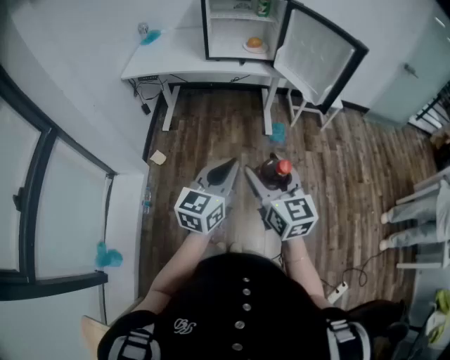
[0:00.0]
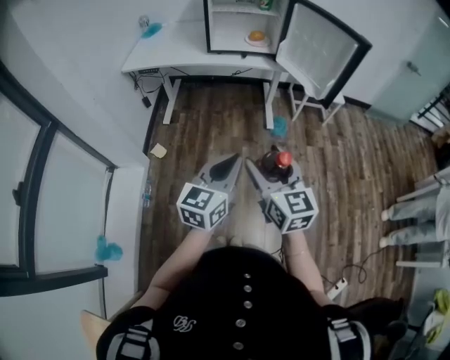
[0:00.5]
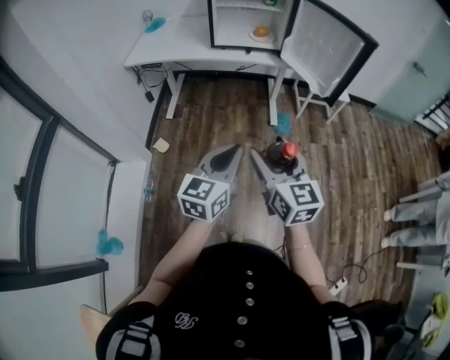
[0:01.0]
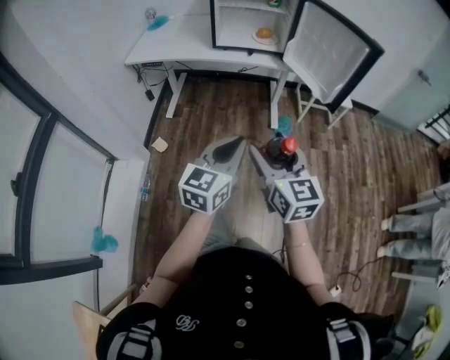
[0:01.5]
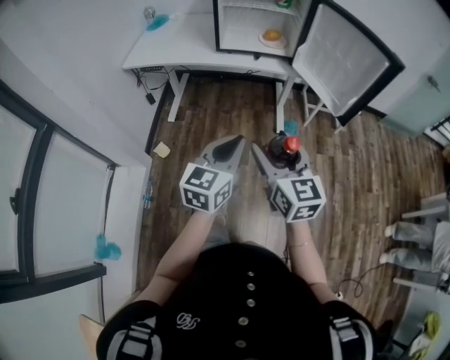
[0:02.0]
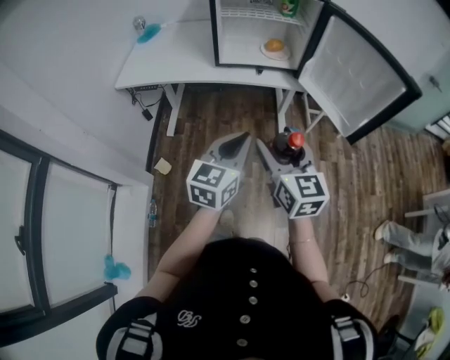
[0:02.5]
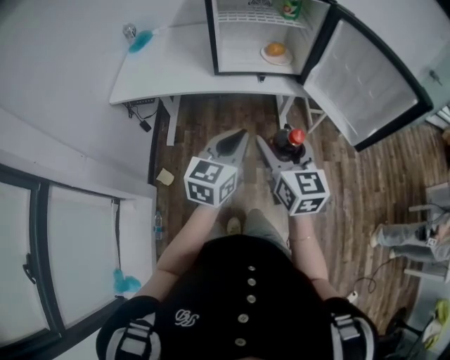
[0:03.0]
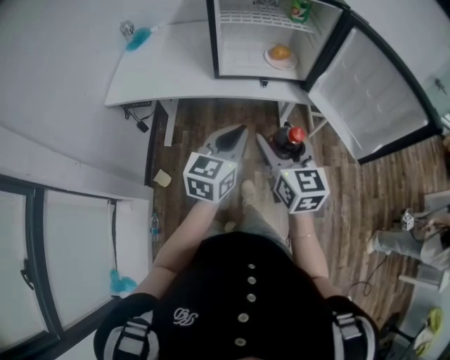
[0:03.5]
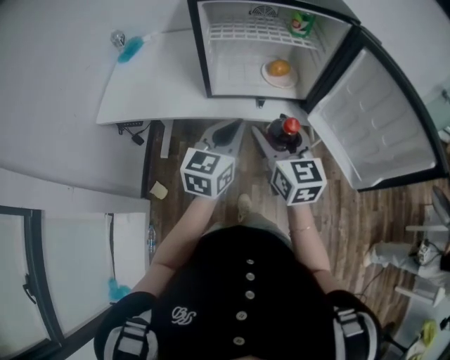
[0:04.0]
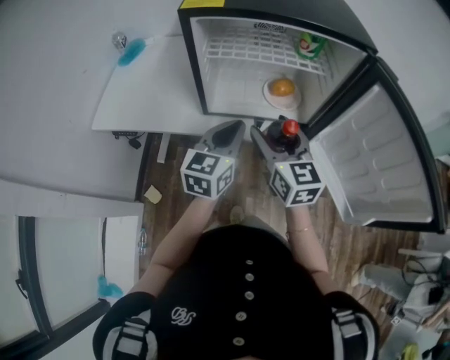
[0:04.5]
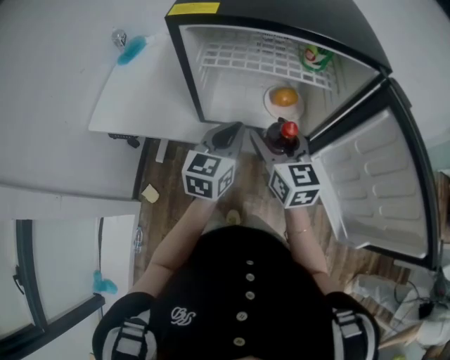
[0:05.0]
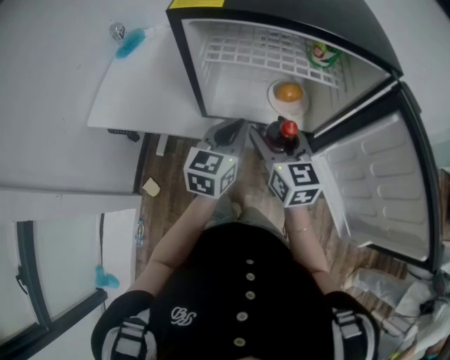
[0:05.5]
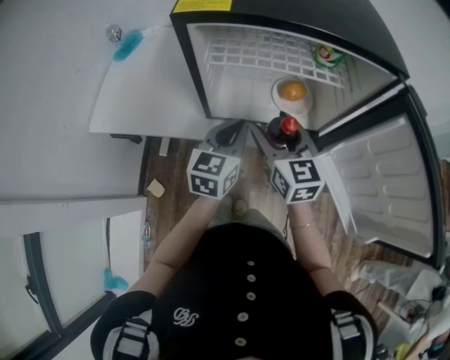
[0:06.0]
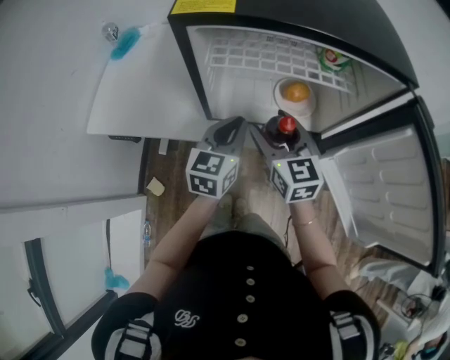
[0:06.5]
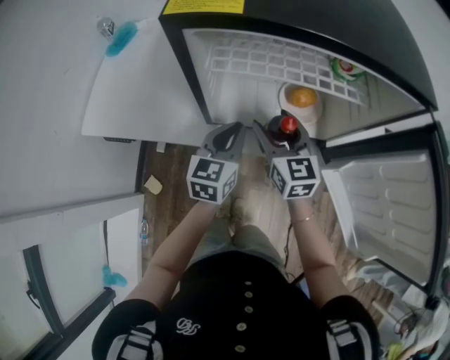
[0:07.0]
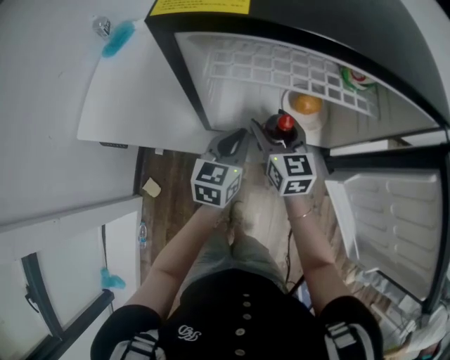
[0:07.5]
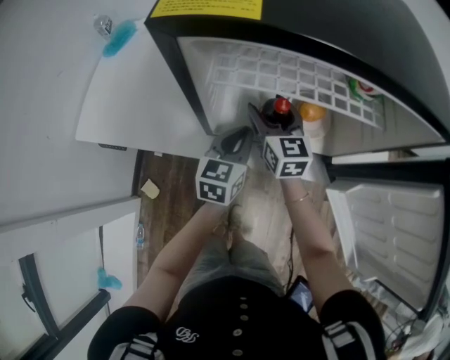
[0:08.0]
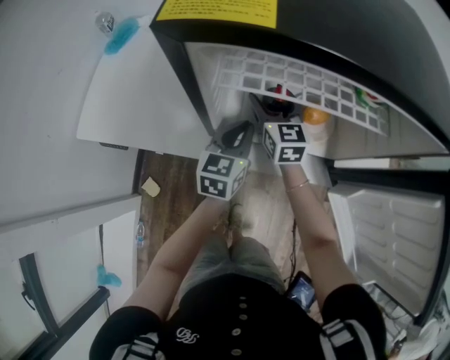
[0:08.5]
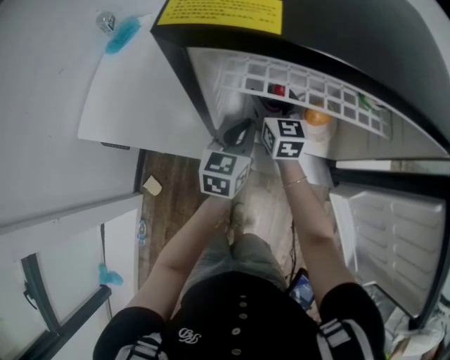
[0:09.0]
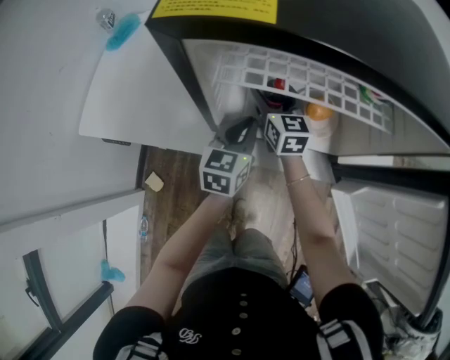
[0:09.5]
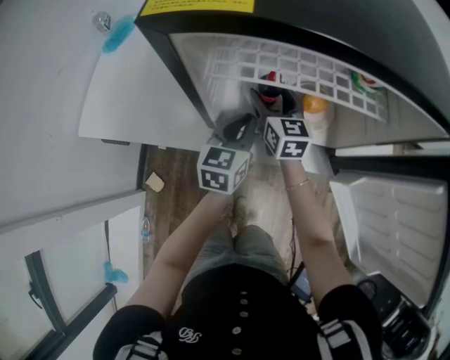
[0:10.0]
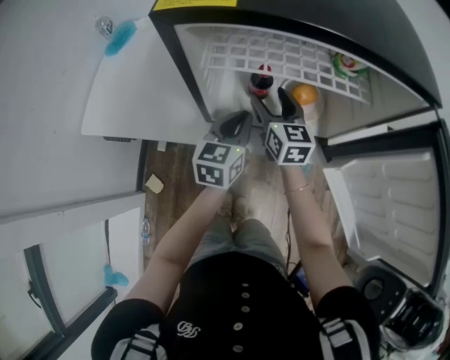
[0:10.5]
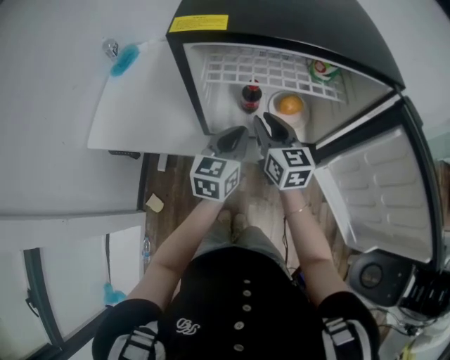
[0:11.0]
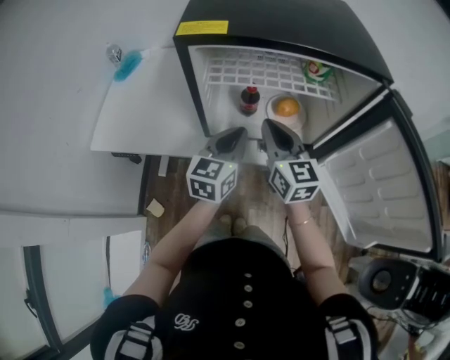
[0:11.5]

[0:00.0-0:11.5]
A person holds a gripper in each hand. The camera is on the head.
0:00.0 to 0:02.0: The two grippers go about 15 cm forward.
0:02.0 to 0:04.0: The two grippers go about 40 cm forward.
0:04.0 to 0:06.0: The two grippers go about 15 cm forward.
0:06.0 to 0:07.5: The right gripper heads forward and downward, covering approximately 15 cm. Meanwhile the left gripper moves downward and forward, some 10 cm.
0:07.5 to 0:09.5: The right gripper is displaced forward by approximately 10 cm.
0:09.5 to 0:11.5: The right gripper travels backward and upward by some 25 cm, and closes. Meanwhile the left gripper goes roughly 15 cm upward and backward.

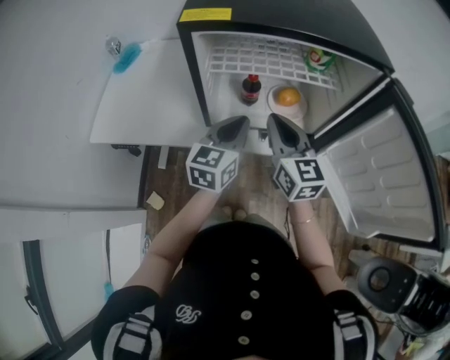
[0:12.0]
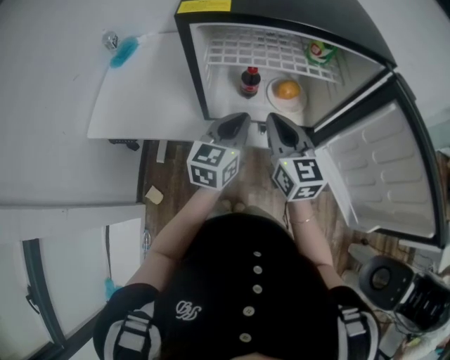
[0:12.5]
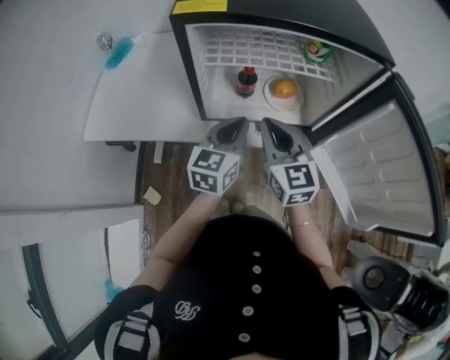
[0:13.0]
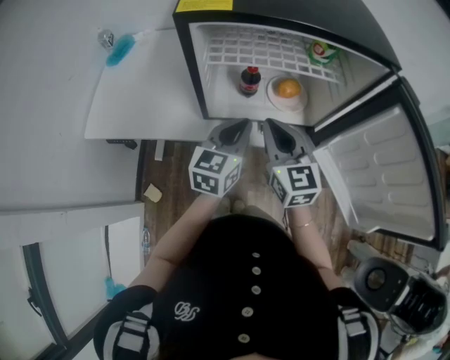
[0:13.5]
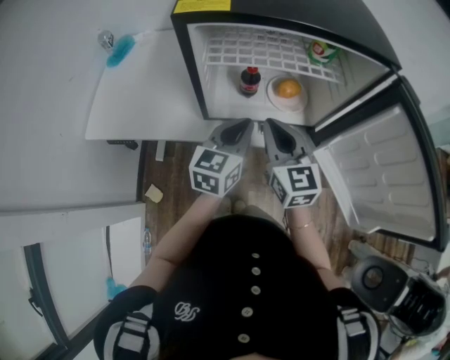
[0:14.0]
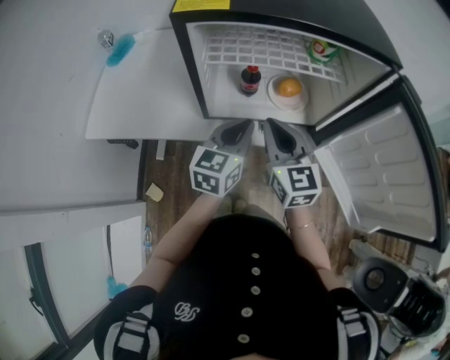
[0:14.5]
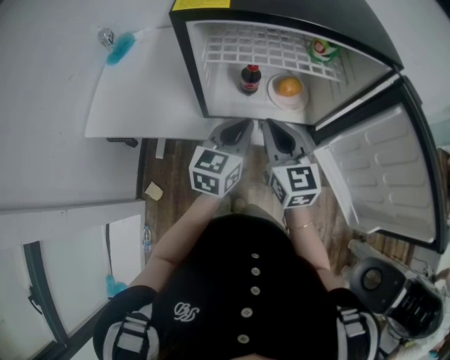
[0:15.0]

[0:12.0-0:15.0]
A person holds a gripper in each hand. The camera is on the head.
0:12.0 to 0:13.5: The grippers stay close to where they were, moving slightly.
0:13.5 to 0:15.0: Both grippers stay about where they are.

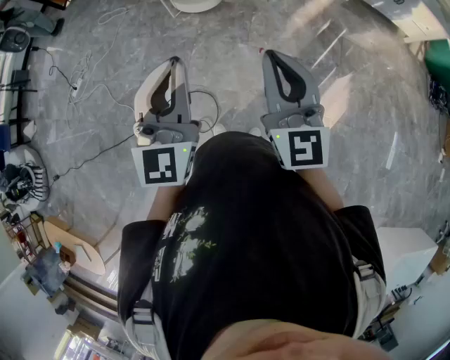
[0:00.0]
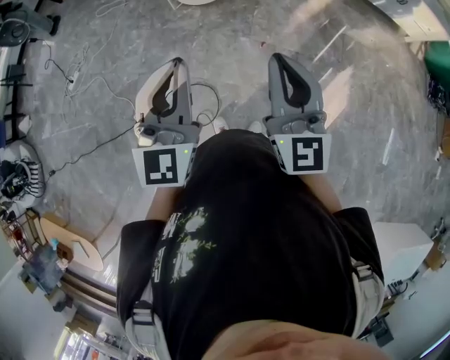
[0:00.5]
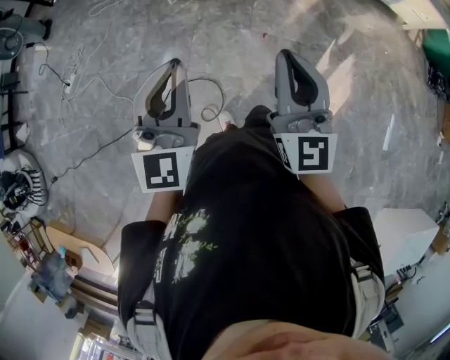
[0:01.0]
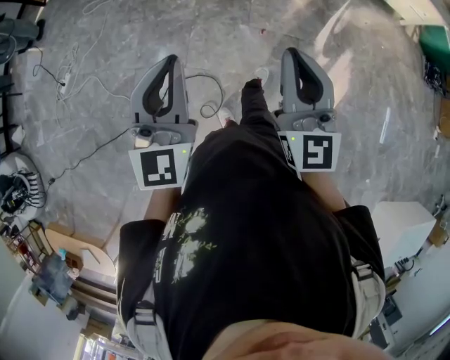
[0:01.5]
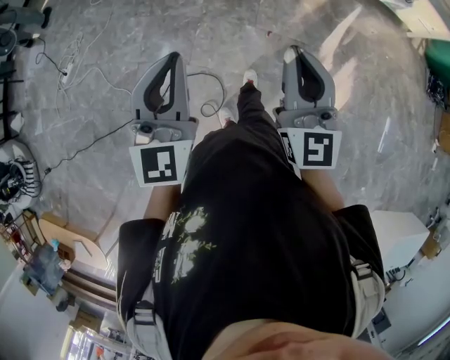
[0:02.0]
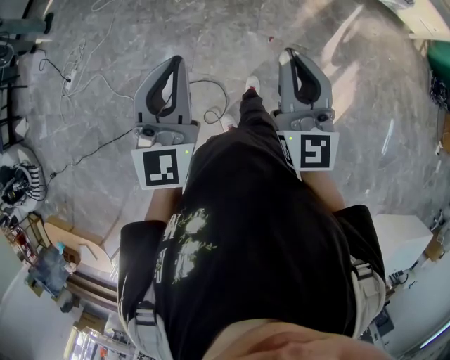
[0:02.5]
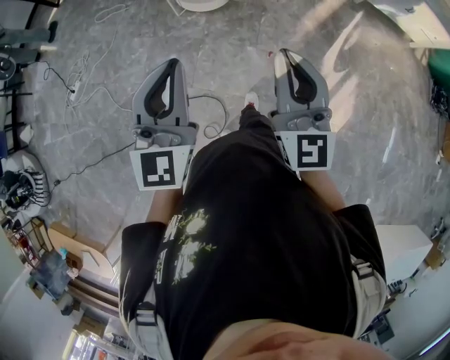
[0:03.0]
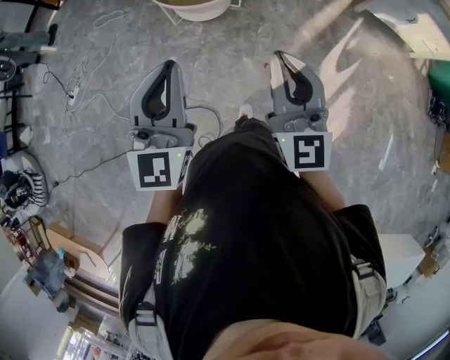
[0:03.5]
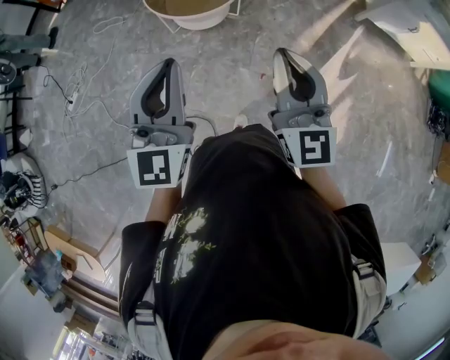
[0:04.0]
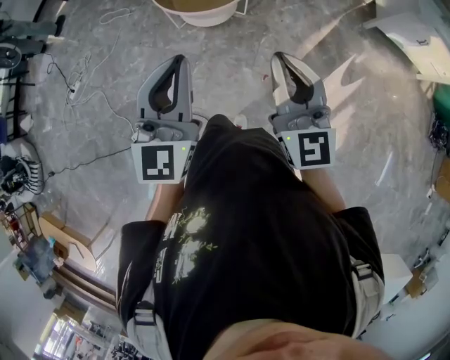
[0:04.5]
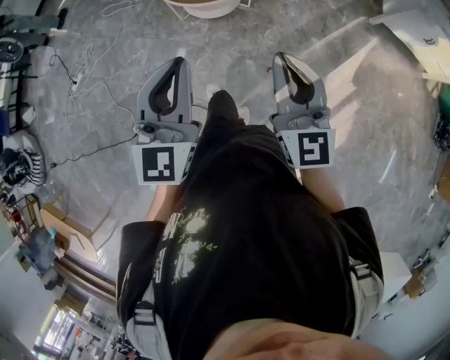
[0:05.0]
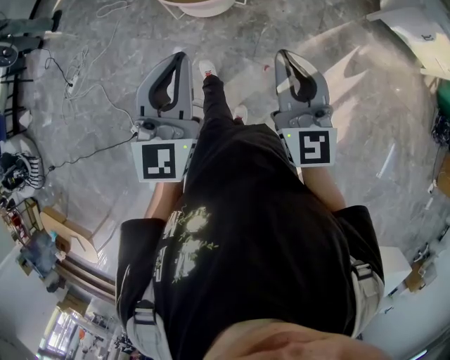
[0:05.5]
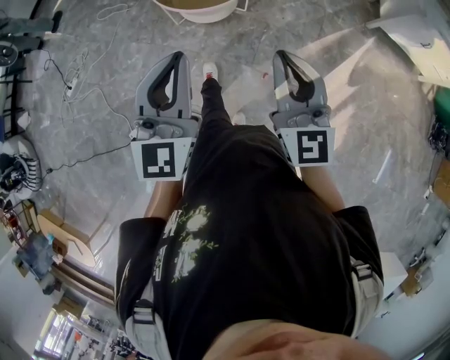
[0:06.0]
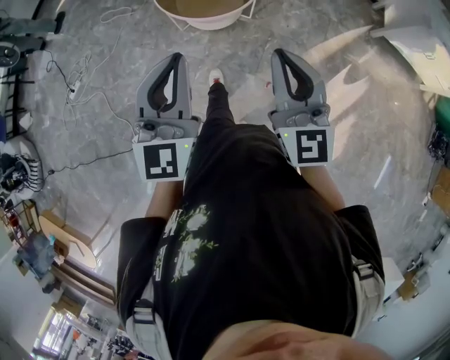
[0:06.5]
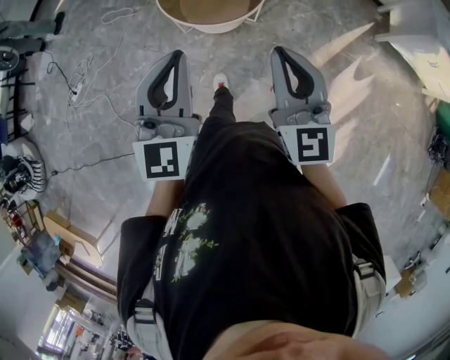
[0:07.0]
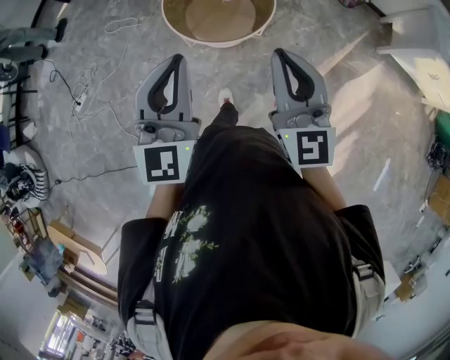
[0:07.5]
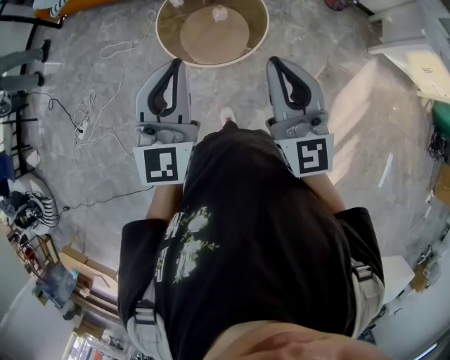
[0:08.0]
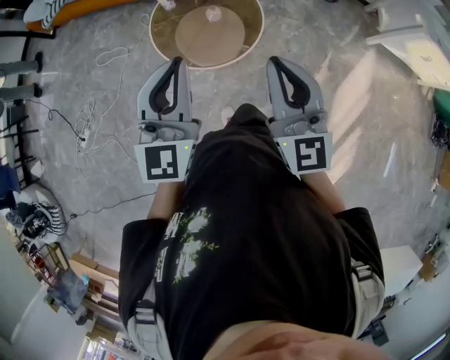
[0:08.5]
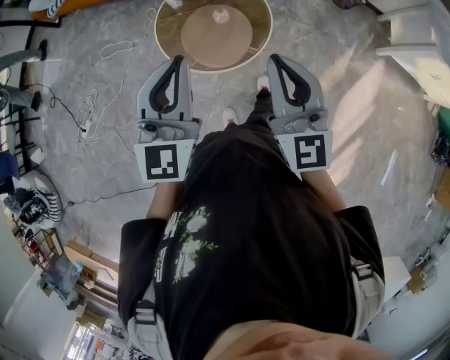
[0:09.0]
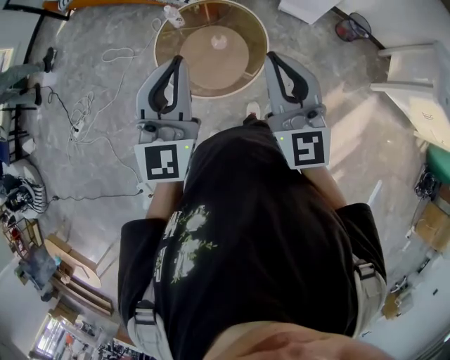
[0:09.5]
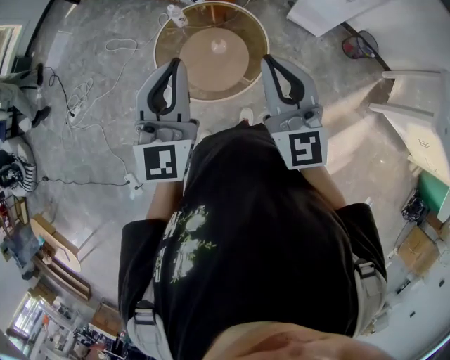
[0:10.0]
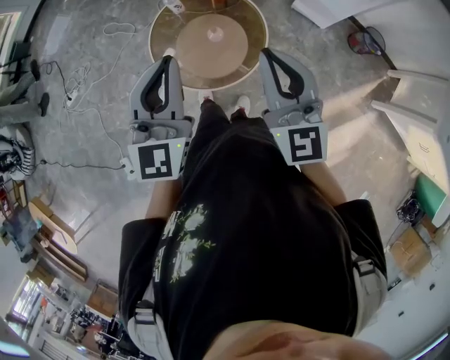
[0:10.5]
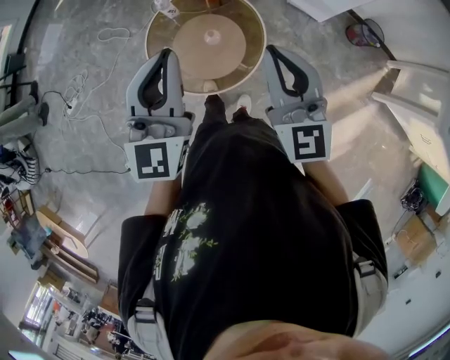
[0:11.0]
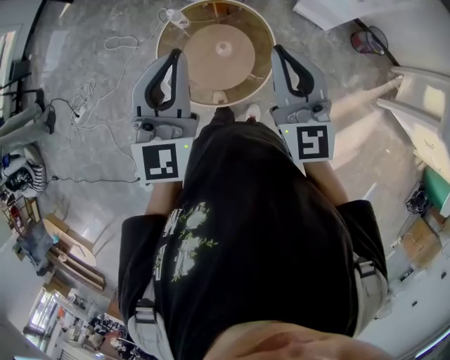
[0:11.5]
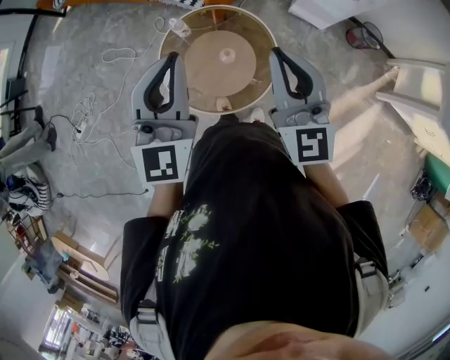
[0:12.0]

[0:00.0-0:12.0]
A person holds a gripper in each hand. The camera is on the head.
0:00.0 to 0:02.0: Both grippers travel together to the left and downward, approximately 15 cm.
0:02.0 to 0:04.0: The grippers both shift forward and to the right by roughly 35 cm.
0:04.0 to 0:06.0: The left gripper is displaced forward by approximately 5 cm. Meanwhile the right gripper shifts roughly 10 cm forward and downward.
0:06.0 to 0:08.0: Both grippers move forward, some 35 cm.
0:08.0 to 0:10.0: Both grippers travel together forward and to the right, some 30 cm.
0:10.0 to 0:12.0: Both grippers travel together forward, about 20 cm.
